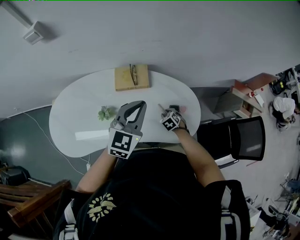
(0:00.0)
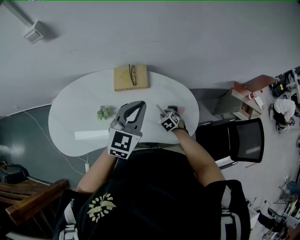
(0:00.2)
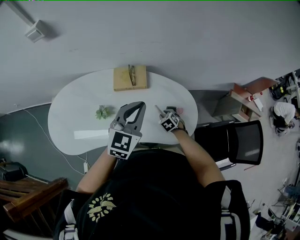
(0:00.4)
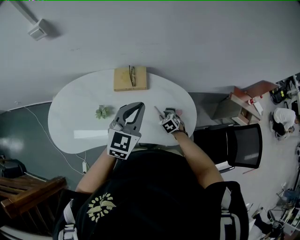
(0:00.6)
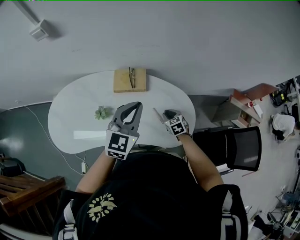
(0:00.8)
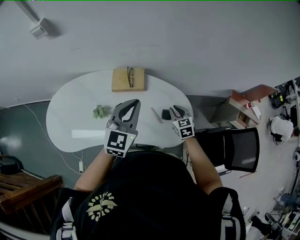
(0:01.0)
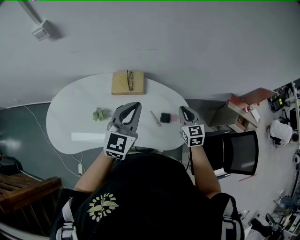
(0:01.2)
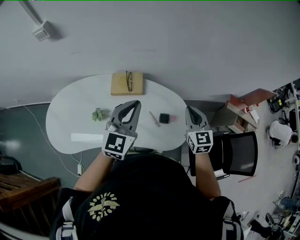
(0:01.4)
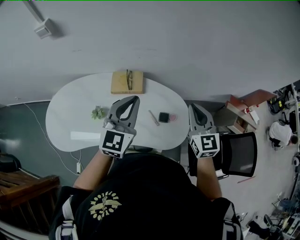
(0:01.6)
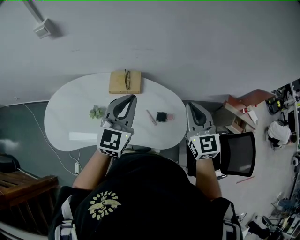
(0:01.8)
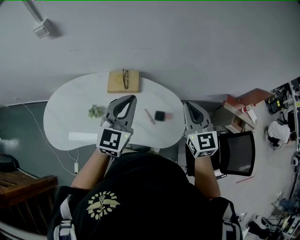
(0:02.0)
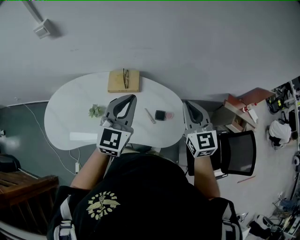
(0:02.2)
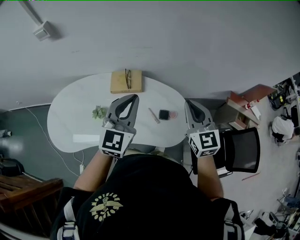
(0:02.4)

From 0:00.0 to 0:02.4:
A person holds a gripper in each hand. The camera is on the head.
From 0:00.0 to 0:01.2: The right gripper travels upward and to the right by approximately 25 cm, and angles its fingers upward, by roughly 40 degrees.
From 0:01.2 to 0:02.4: The left gripper moves about 5 cm, while the right gripper travels upward by about 15 cm.

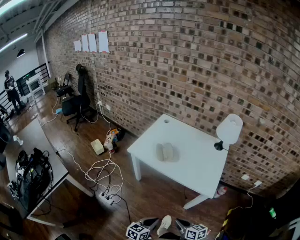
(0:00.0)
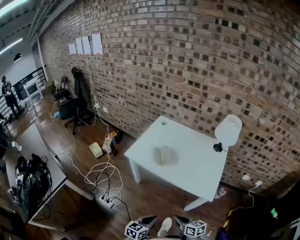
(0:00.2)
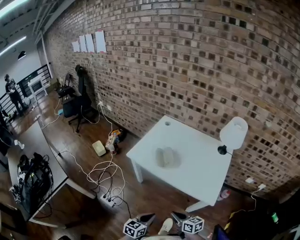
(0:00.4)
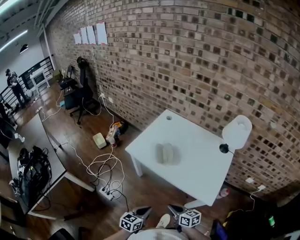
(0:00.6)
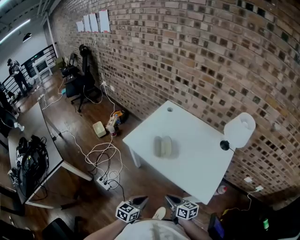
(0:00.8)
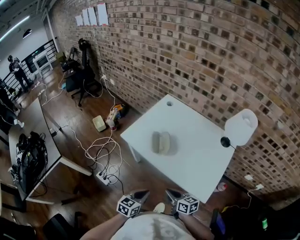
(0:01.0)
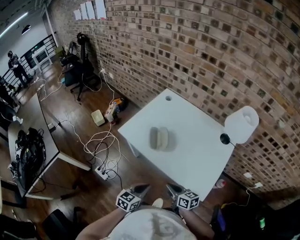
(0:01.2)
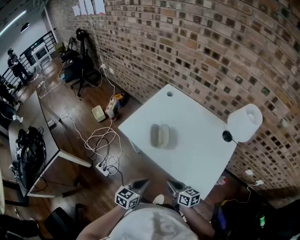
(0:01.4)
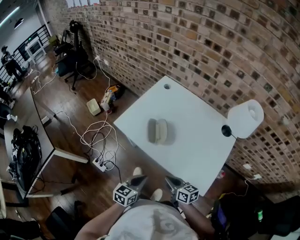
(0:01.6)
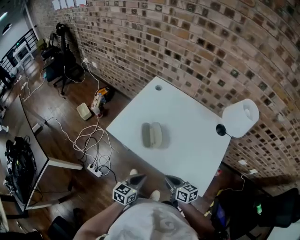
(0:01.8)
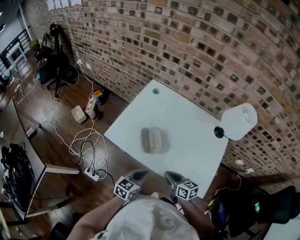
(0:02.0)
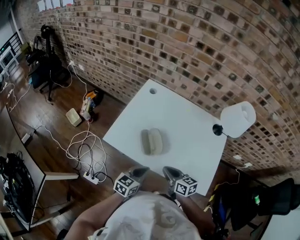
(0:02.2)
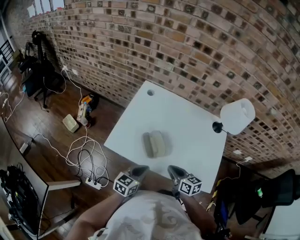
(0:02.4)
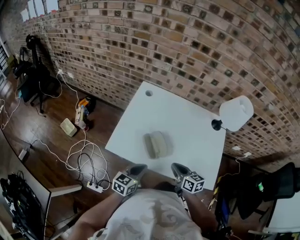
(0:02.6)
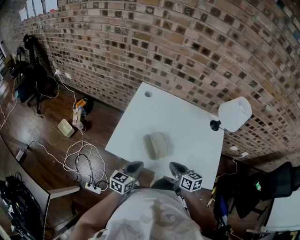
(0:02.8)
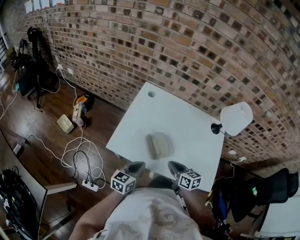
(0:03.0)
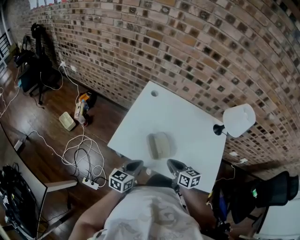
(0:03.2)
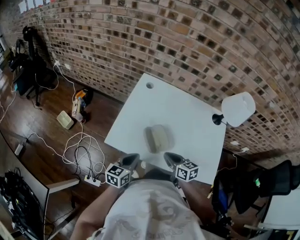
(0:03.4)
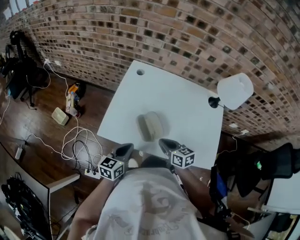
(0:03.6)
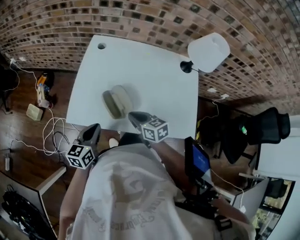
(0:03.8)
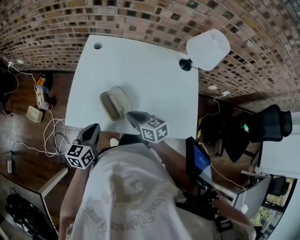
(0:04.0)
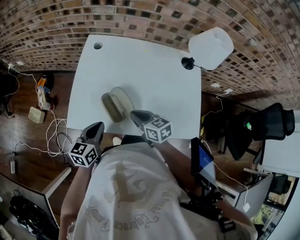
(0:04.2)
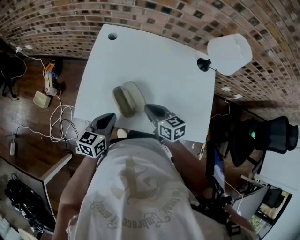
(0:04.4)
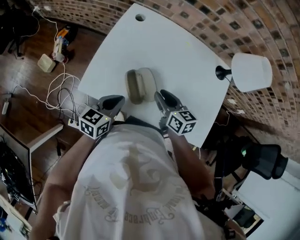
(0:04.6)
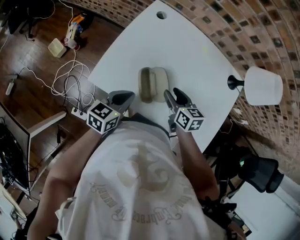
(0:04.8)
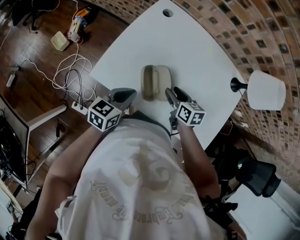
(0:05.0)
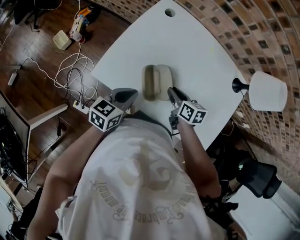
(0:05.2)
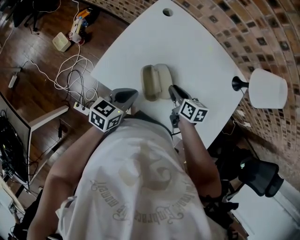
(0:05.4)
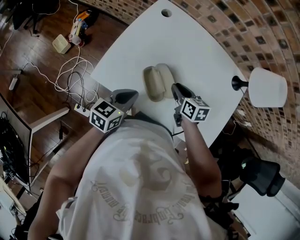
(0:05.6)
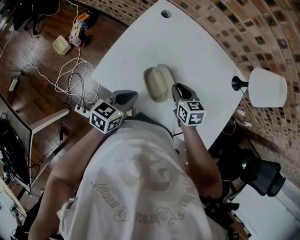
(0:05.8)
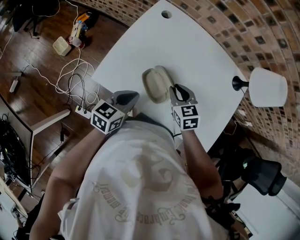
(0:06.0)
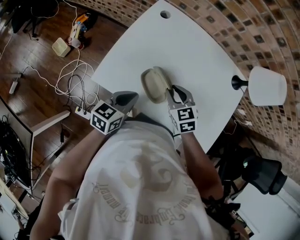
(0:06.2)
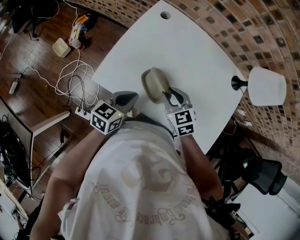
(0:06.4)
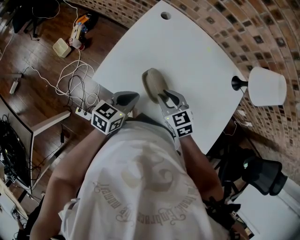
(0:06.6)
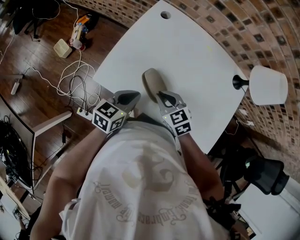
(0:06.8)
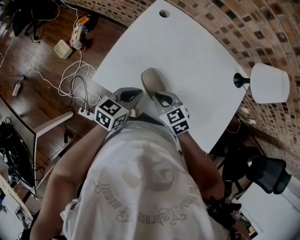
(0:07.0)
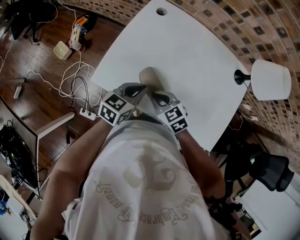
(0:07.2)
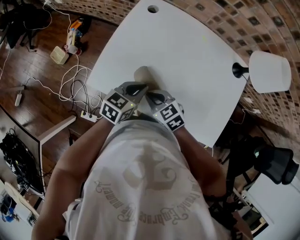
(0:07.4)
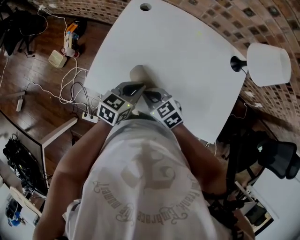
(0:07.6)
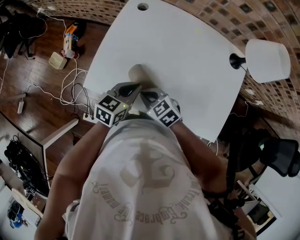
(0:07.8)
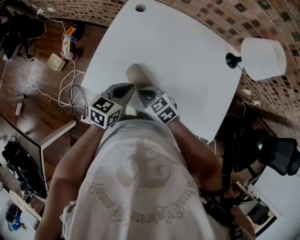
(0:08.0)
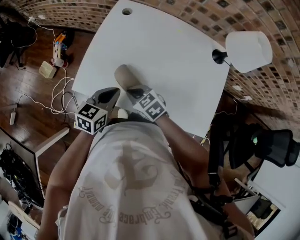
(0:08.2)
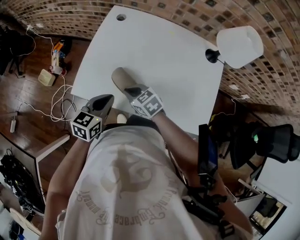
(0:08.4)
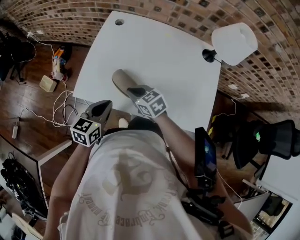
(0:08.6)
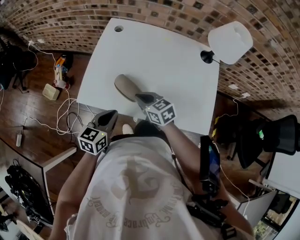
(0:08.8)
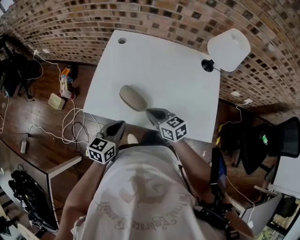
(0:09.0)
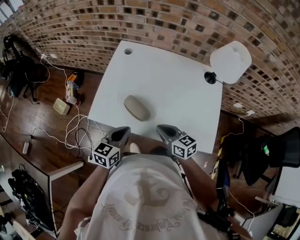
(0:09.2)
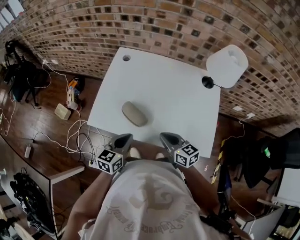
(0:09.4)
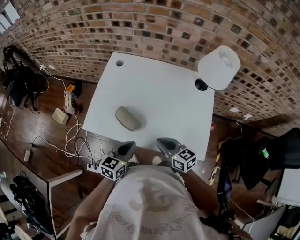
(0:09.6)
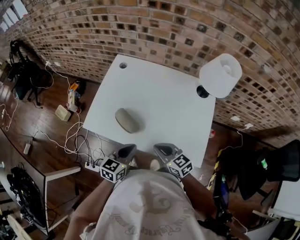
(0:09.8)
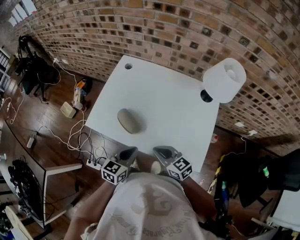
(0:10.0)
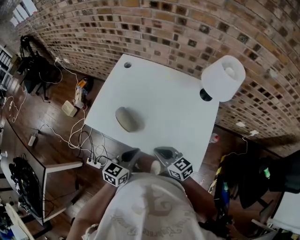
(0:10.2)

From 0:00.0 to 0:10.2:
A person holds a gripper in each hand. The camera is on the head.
From 0:00.0 to 0:01.4: The two grippers go about 25 cm forward.
From 0:01.4 to 0:03.0: The grippers both shift forward and to the left by about 20 cm. The right gripper changes its angle by approximately 30 degrees.
From 0:03.0 to 0:04.4: Both grippers move forward, roughly 5 cm.
From 0:04.4 to 0:05.8: The right gripper heads forward, covering approximately 5 cm, and opens and closes again.
From 0:05.8 to 0:07.2: The right gripper heads to the left and backward, covering some 10 cm, and rotates some 20 degrees.
From 0:07.2 to 0:08.8: The left gripper shifts approximately 10 cm backward. Meanwhile the right gripper rotates some 20 degrees.
From 0:08.8 to 0:10.2: The right gripper heads to the right and backward, covering about 20 cm, while the left gripper moves to the right, roughly 15 cm.

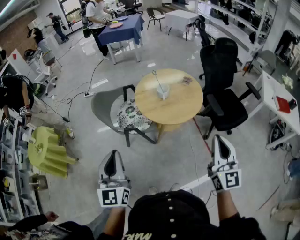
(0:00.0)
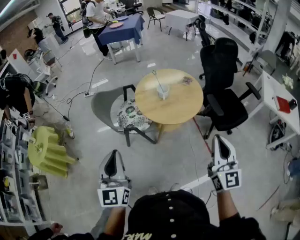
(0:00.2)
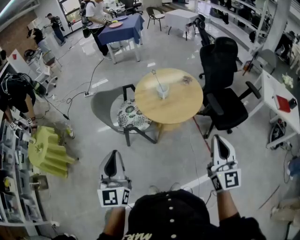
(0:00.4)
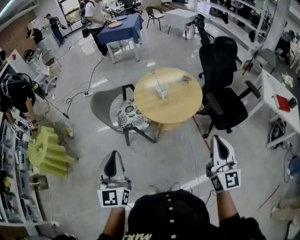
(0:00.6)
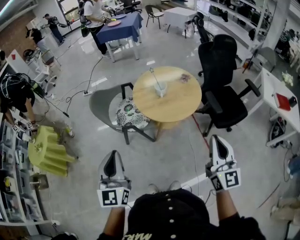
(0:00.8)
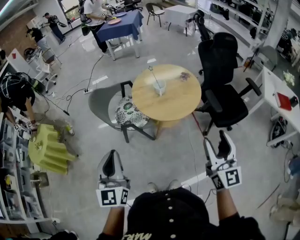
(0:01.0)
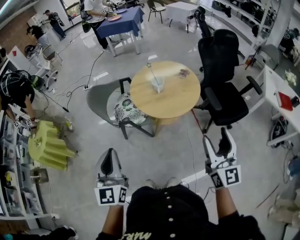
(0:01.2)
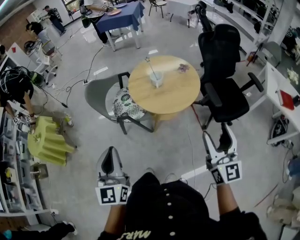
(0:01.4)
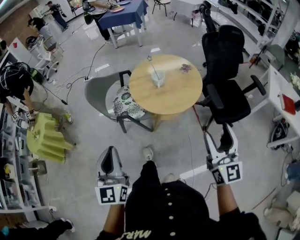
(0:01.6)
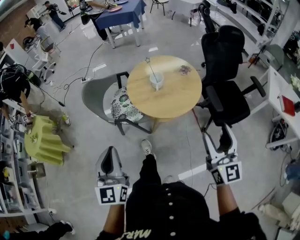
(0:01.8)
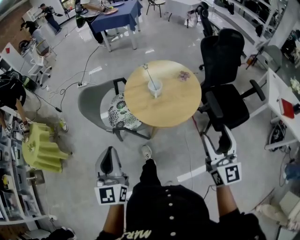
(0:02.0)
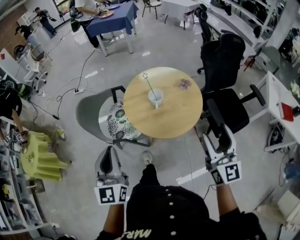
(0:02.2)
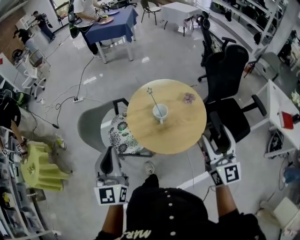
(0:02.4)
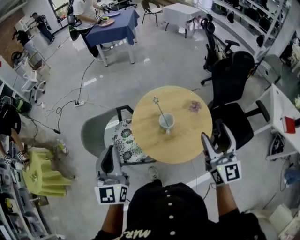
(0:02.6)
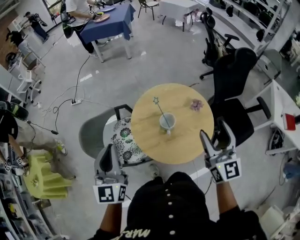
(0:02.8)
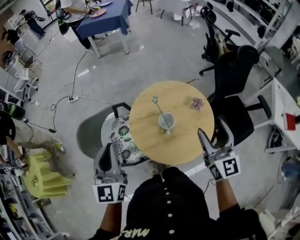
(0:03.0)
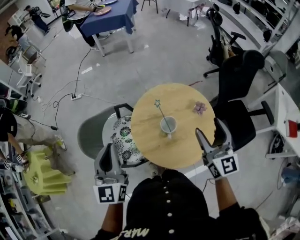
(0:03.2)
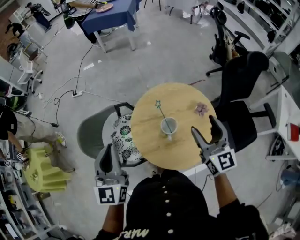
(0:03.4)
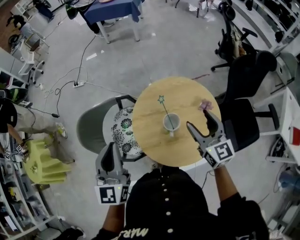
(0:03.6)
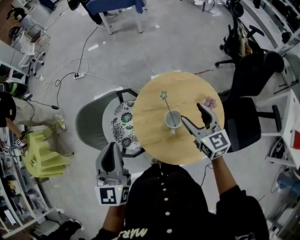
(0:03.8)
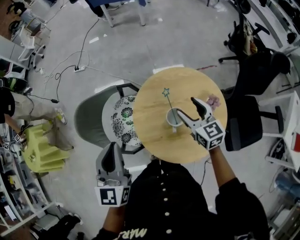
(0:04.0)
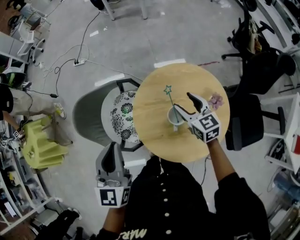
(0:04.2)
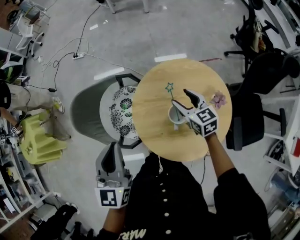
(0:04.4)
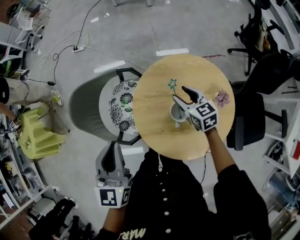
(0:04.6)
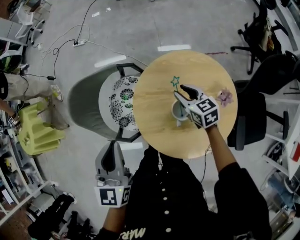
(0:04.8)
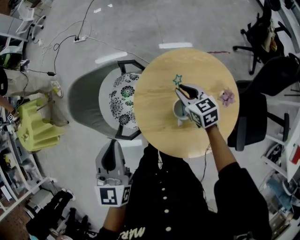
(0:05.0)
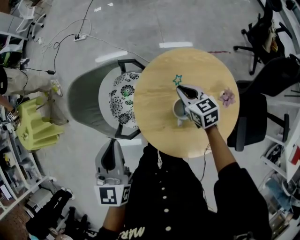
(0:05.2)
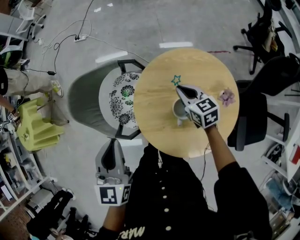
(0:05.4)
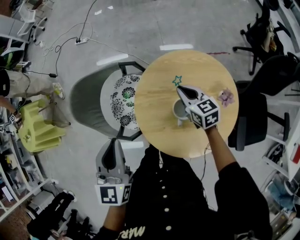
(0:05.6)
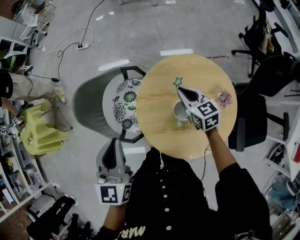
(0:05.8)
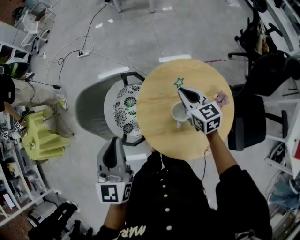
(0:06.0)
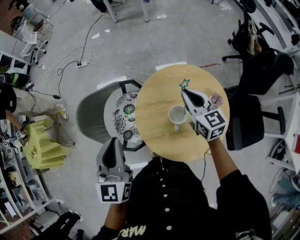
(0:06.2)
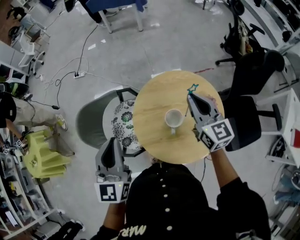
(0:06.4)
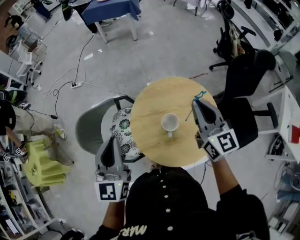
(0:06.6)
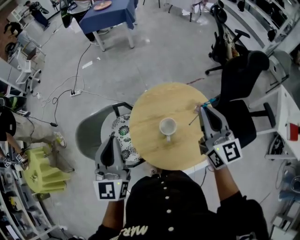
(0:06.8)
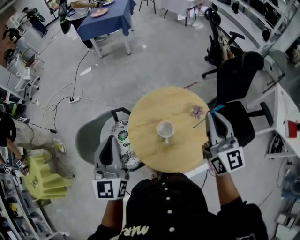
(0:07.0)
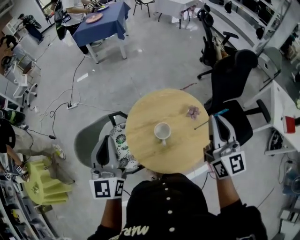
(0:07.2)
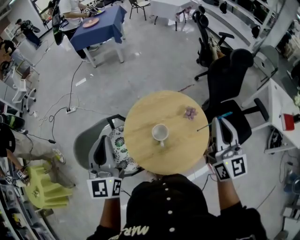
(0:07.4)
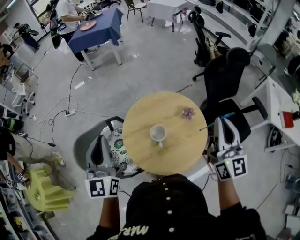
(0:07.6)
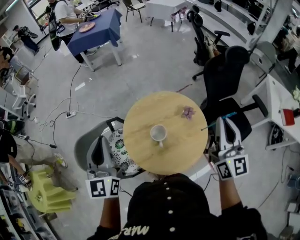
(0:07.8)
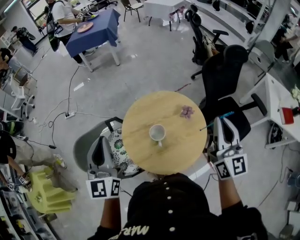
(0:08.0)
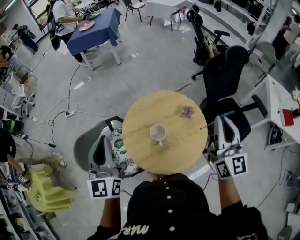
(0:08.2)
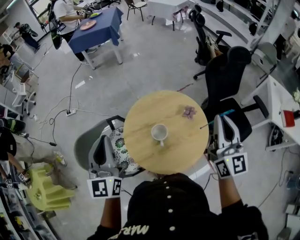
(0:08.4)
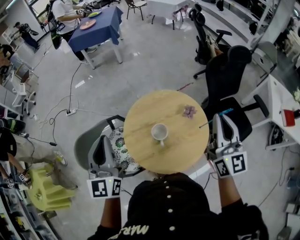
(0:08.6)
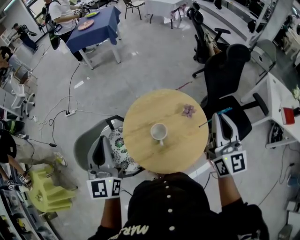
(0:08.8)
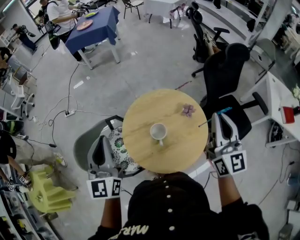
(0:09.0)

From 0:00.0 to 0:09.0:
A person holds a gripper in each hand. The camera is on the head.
From 0:00.0 to 0:01.6: The grippers both shift to the right by some 10 cm. The right gripper opens up.
From 0:01.6 to 0:03.0: Both grippers are carried forward, roughly 50 cm.
From 0:03.0 to 0:04.4: The left gripper heads downward and forward, covering roughly 10 cm; the right gripper goes about 35 cm downward and forward, and tilts its fingers about 30 degrees downward.
From 0:04.4 to 0:06.0: The right gripper closes up.
From 0:06.0 to 0:07.6: The right gripper goes roughly 30 cm upward, and points its fingers some 40 degrees further upward, while the left gripper goes approximately 15 cm upward, and swivels some 20 degrees.
From 0:07.6 to 0:09.0: The grippers stay close to where they were, moving slightly.

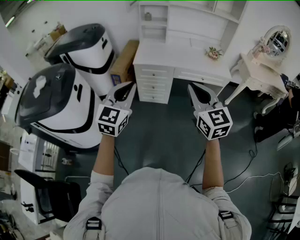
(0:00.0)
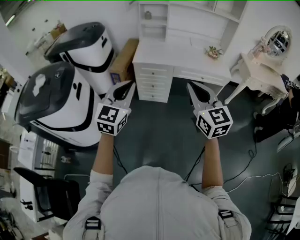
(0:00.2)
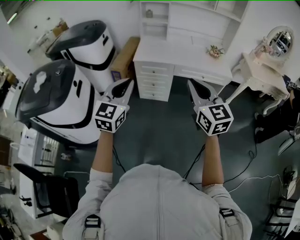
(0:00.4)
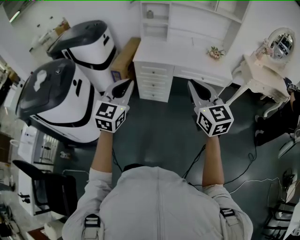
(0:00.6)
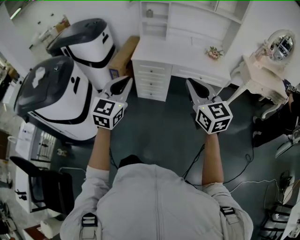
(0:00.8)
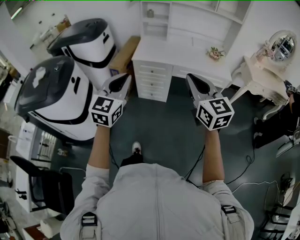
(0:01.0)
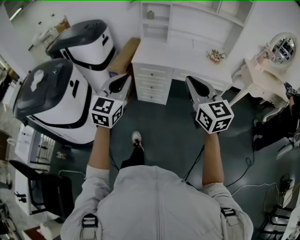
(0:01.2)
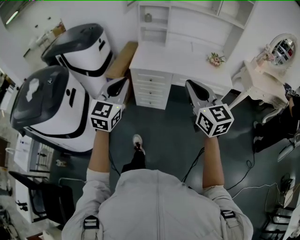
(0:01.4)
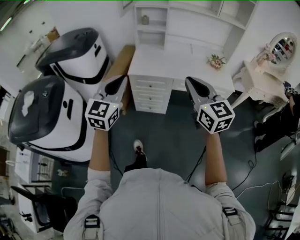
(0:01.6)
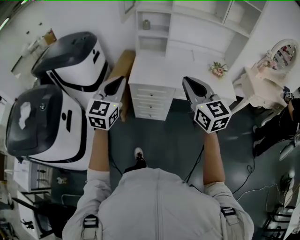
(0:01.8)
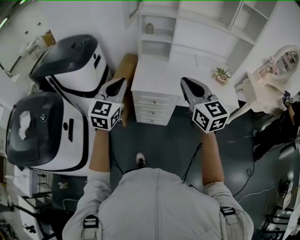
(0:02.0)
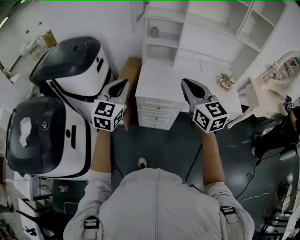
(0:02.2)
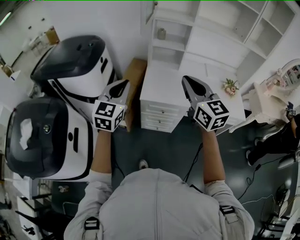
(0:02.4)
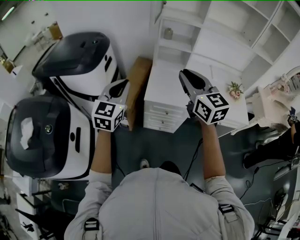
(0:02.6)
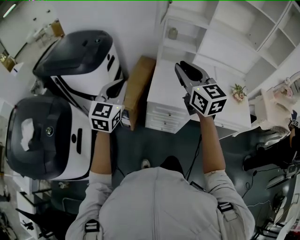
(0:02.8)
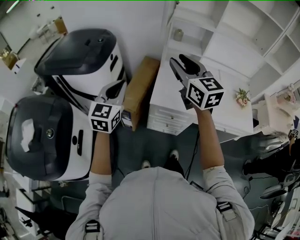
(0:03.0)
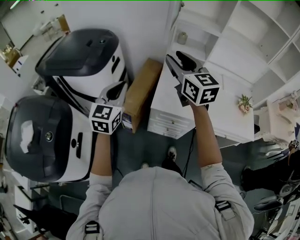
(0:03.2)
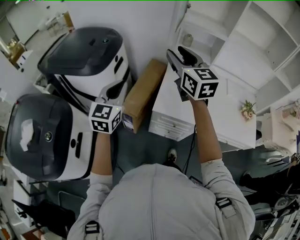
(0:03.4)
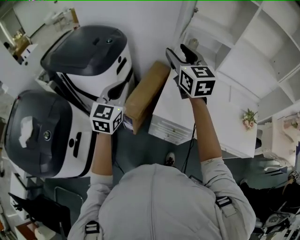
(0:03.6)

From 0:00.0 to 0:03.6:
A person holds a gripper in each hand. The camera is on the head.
From 0:00.0 to 0:01.8: The two grippers go about 25 cm forward.
From 0:01.8 to 0:03.6: The right gripper moves forward and to the left, roughly 50 cm, and opens up. Meanwhile the left gripper moves forward and to the left, approximately 30 cm.
